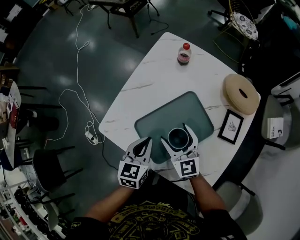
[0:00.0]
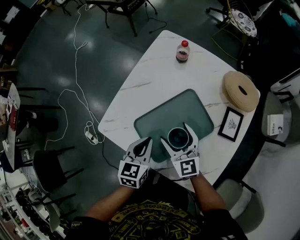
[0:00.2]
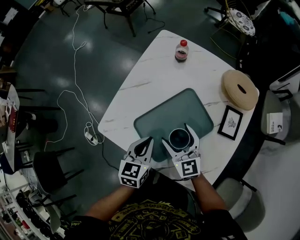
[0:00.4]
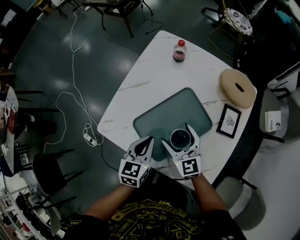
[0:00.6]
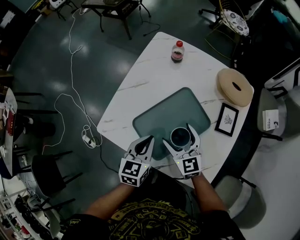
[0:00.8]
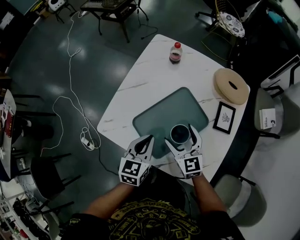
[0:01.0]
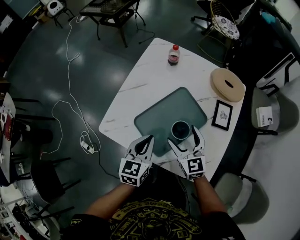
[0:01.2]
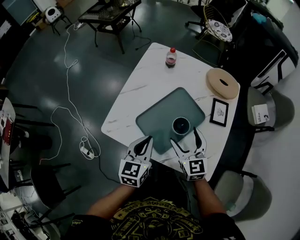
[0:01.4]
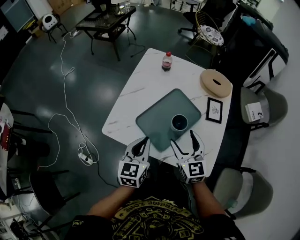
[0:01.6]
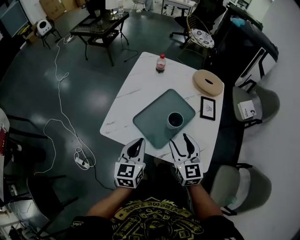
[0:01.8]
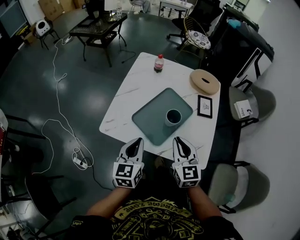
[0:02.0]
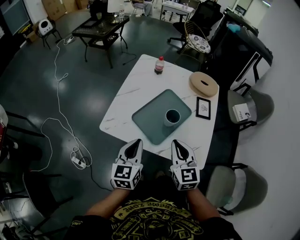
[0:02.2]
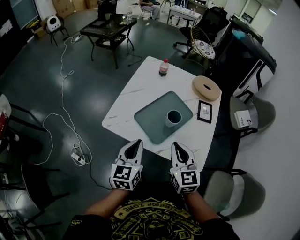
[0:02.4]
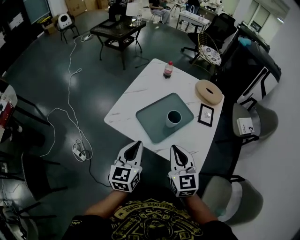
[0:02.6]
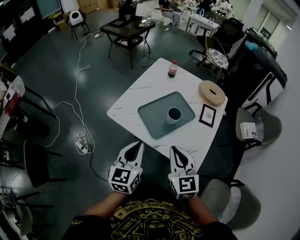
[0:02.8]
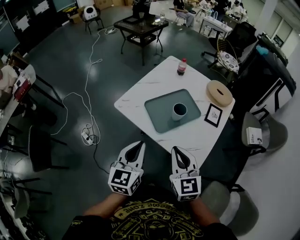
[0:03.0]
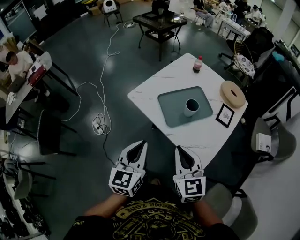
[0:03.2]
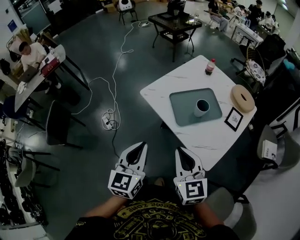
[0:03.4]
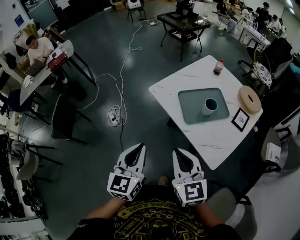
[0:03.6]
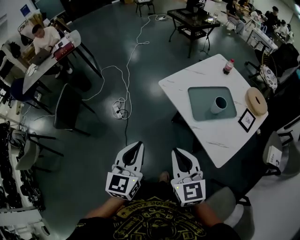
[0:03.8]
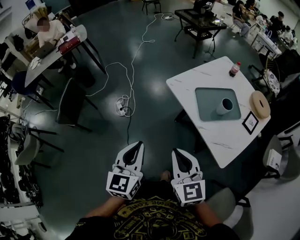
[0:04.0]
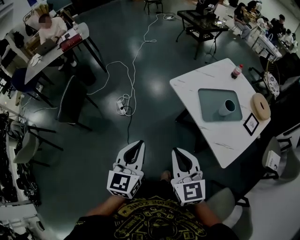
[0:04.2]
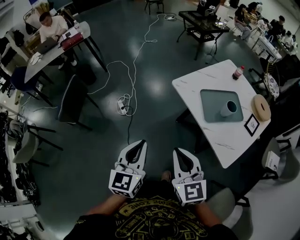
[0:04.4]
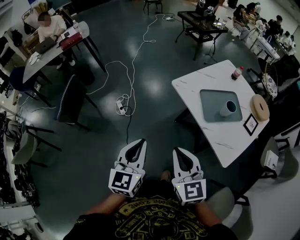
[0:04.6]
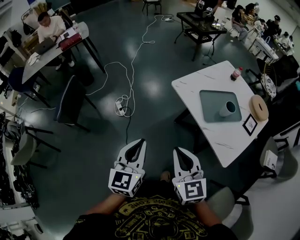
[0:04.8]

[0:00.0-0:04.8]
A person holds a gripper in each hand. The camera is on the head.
0:00.0 to 0:01.6: The two grippers go roughly 10 cm backward and upward. The right gripper changes its angle by about 20 degrees.
0:01.6 to 0:03.2: The right gripper changes place by roughly 25 cm, turns by some 20 degrees, and closes its fingers; the left gripper shifts by approximately 25 cm, and turns by about 20 degrees.
0:03.2 to 0:04.8: Both grippers travel together to the left, some 25 cm.

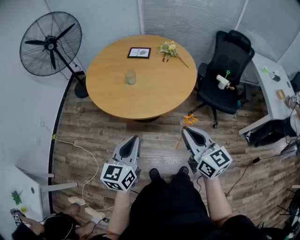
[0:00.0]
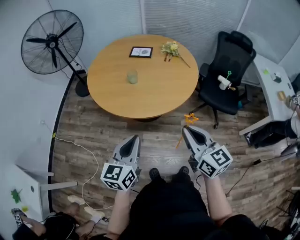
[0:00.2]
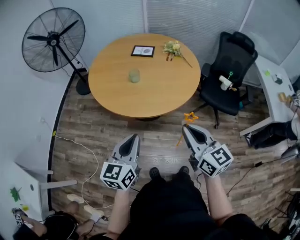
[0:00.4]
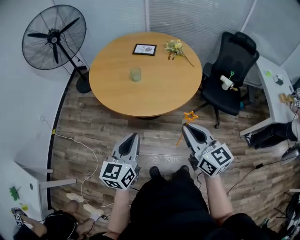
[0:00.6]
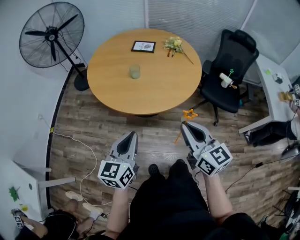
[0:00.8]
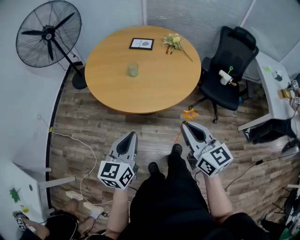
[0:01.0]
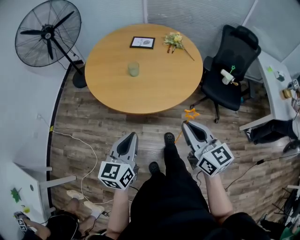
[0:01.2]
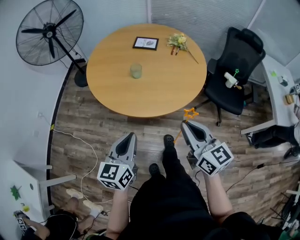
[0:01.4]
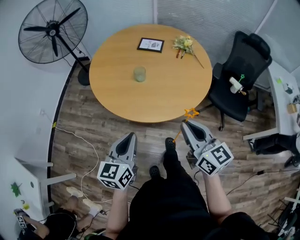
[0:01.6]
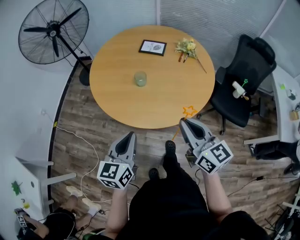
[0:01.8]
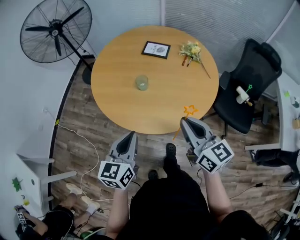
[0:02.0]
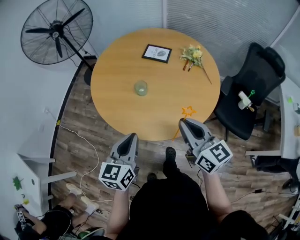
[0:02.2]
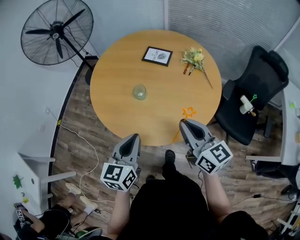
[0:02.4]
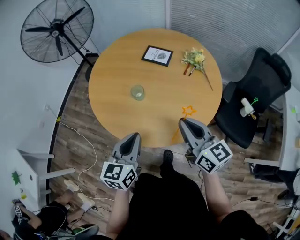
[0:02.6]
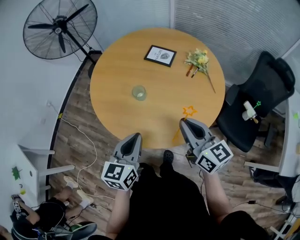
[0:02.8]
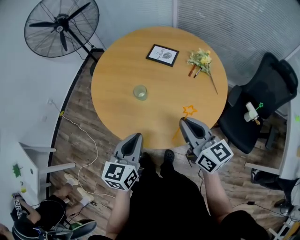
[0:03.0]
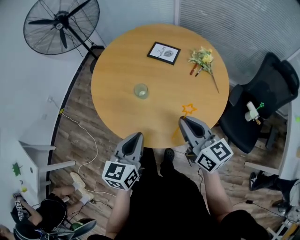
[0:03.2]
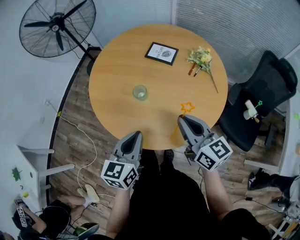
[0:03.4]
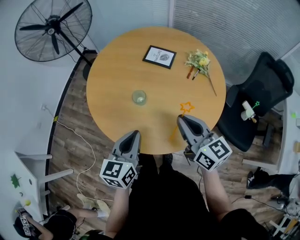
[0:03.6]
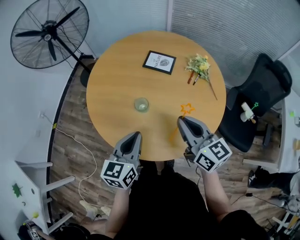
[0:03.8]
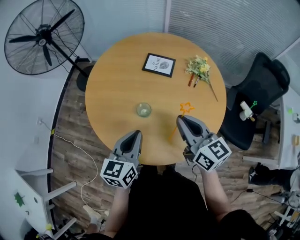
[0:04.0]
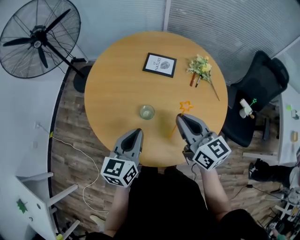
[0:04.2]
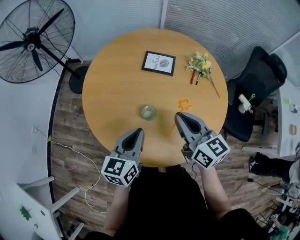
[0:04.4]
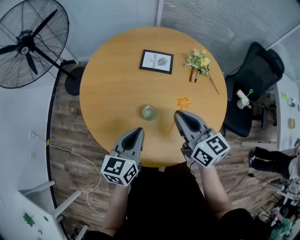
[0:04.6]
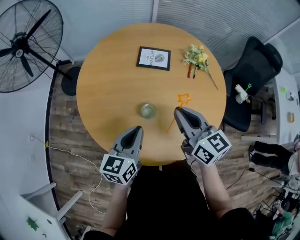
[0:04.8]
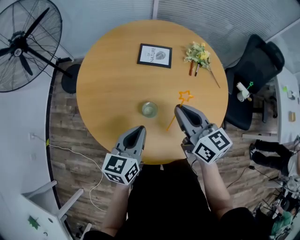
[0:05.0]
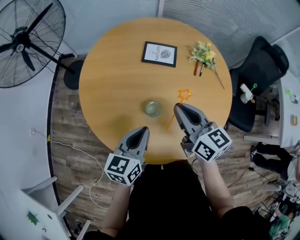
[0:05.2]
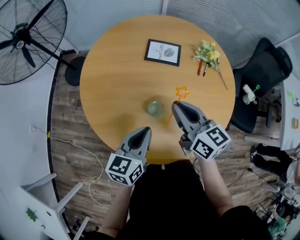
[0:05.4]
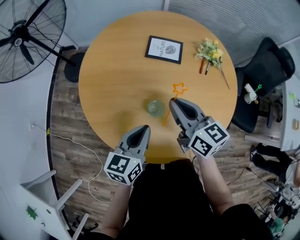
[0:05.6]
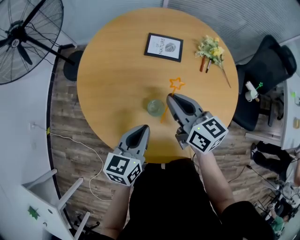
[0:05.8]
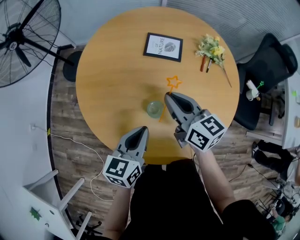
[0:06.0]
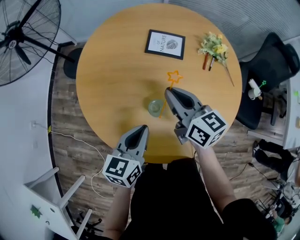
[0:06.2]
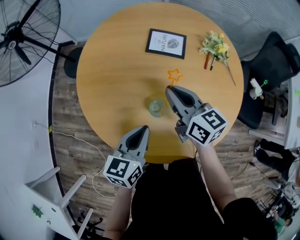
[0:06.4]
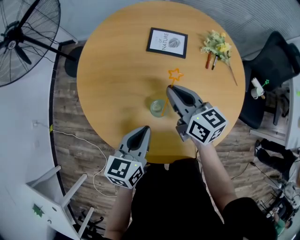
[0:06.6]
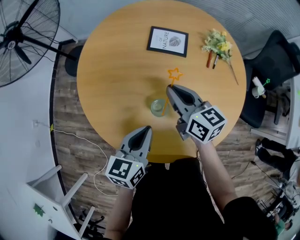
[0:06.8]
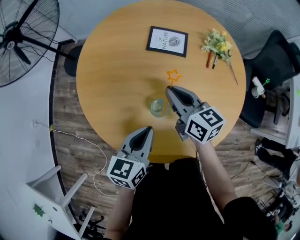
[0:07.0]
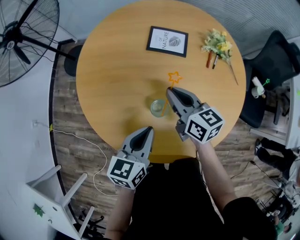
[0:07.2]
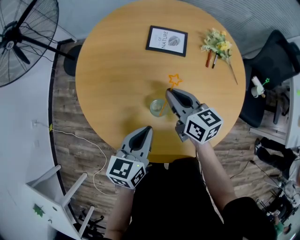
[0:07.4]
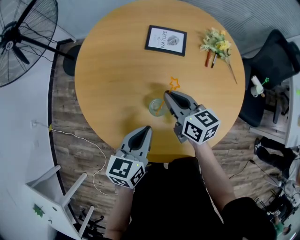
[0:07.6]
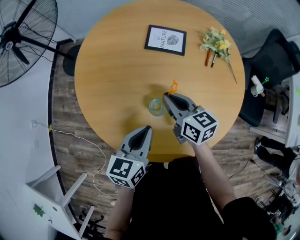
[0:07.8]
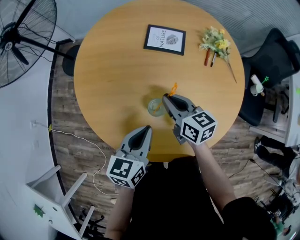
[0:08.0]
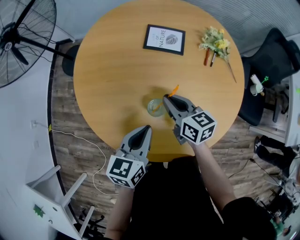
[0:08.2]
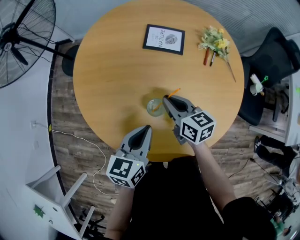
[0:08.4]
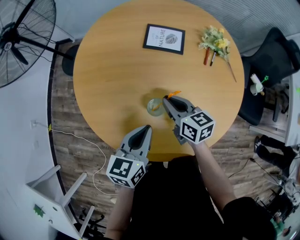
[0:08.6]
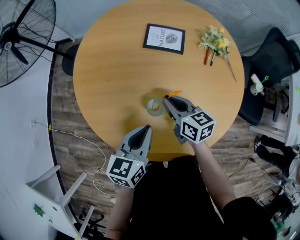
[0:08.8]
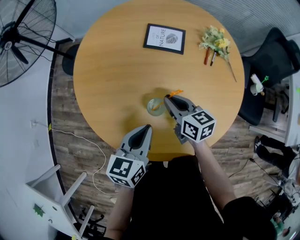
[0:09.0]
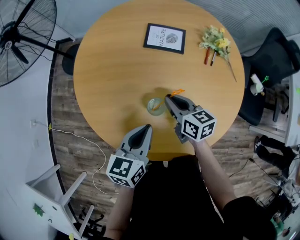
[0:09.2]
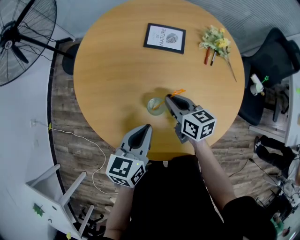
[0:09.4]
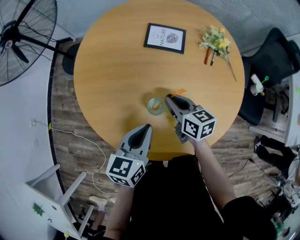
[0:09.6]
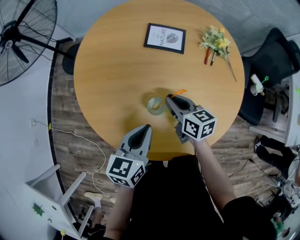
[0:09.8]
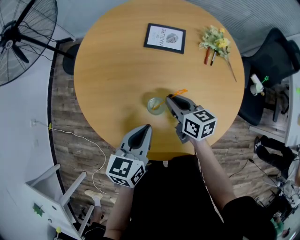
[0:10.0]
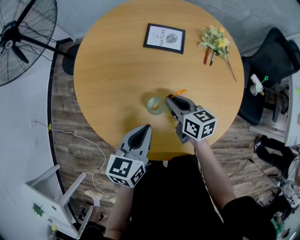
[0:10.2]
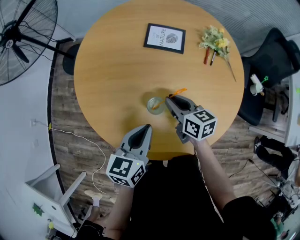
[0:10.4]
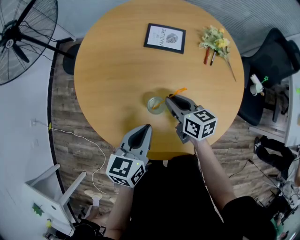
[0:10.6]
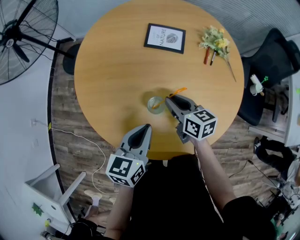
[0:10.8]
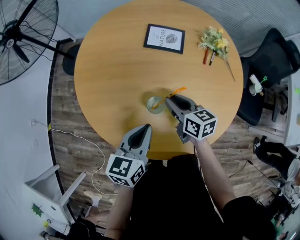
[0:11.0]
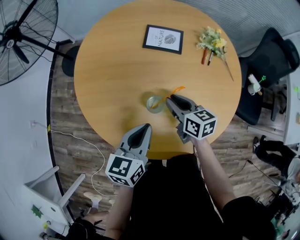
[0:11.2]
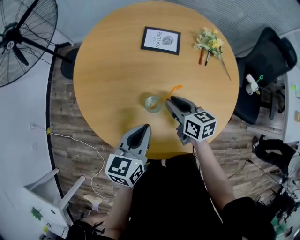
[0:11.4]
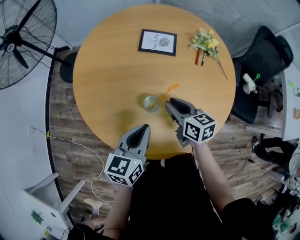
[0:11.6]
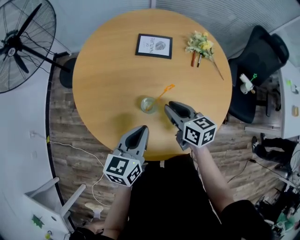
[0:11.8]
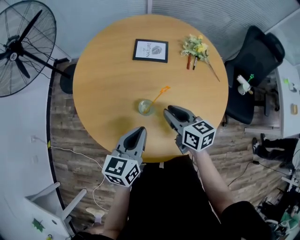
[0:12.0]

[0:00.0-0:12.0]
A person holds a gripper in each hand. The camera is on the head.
0:00.0 to 0:01.6: The grippers both shift forward by some 10 cm.
0:01.6 to 0:03.0: The grippers both shift forward and to the right by approximately 20 cm.
0:03.0 to 0:04.4: Both grippers move forward and to the left, about 20 cm.
0:04.4 to 0:06.0: The right gripper is displaced forward, downward and to the left by some 15 cm; the left gripper shifts roughly 5 cm downward.
0:06.0 to 0:07.6: The right gripper is displaced downward by roughly 5 cm.
0:07.6 to 0:10.4: There are only small adjustments of the grippers.
0:10.4 to 0:12.0: The right gripper shifts some 10 cm backward and upward.

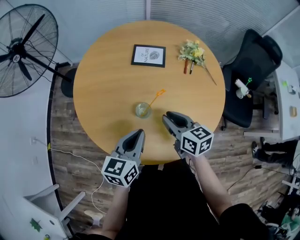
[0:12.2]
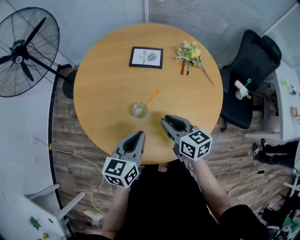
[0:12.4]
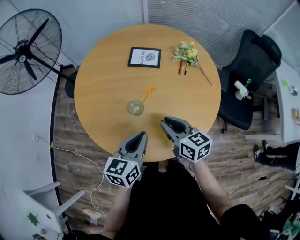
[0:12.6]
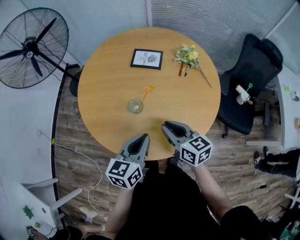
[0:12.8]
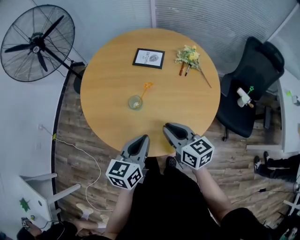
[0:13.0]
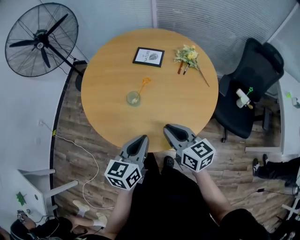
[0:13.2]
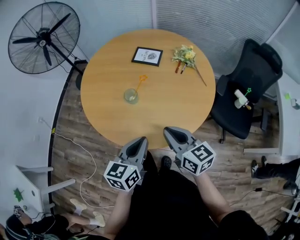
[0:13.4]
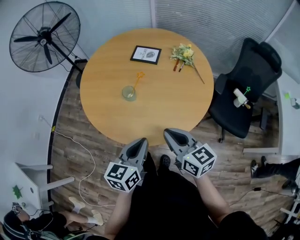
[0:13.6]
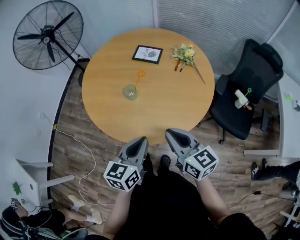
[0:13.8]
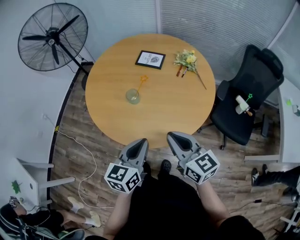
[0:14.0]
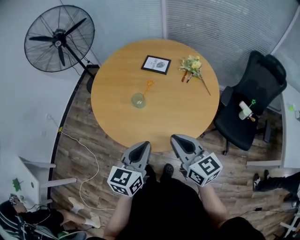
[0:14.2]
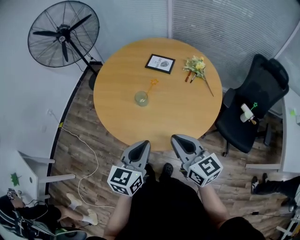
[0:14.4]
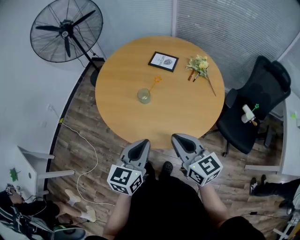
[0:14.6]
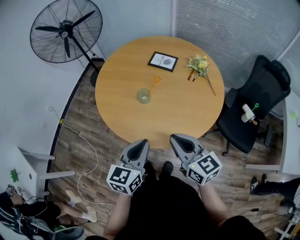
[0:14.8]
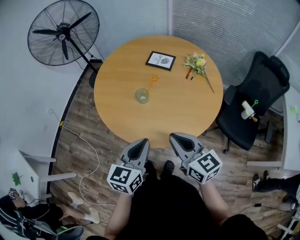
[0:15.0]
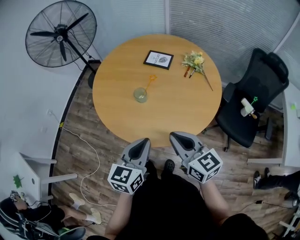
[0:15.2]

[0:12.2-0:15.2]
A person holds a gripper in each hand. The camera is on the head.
0:12.2 to 0:13.8: The right gripper goes approximately 25 cm backward, to the right and upward, and turns by roughly 20 degrees. The left gripper moves backward and to the right, roughly 25 cm.
0:13.8 to 0:15.2: The grippers stay close to where they were, moving slightly.

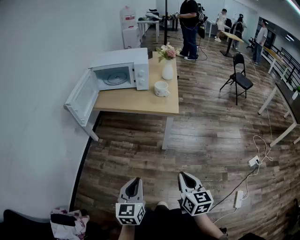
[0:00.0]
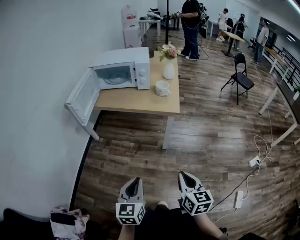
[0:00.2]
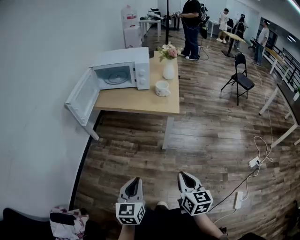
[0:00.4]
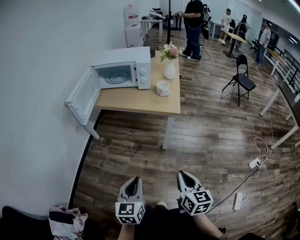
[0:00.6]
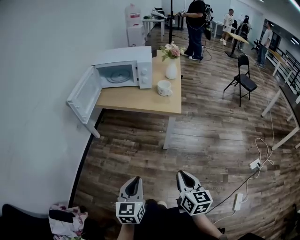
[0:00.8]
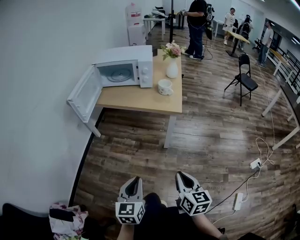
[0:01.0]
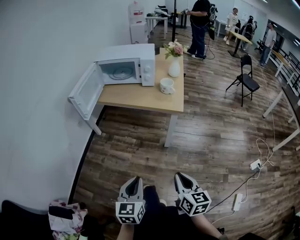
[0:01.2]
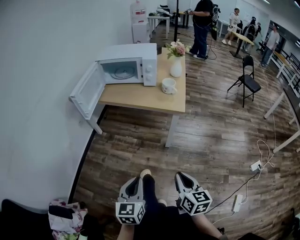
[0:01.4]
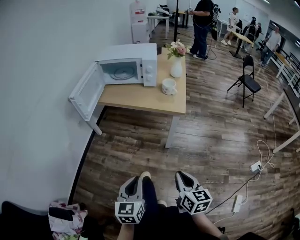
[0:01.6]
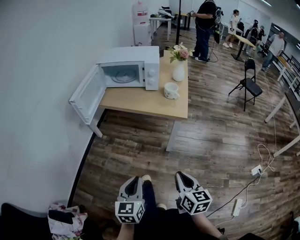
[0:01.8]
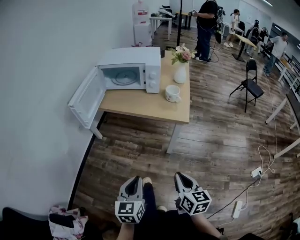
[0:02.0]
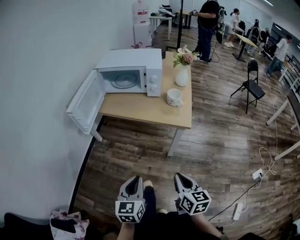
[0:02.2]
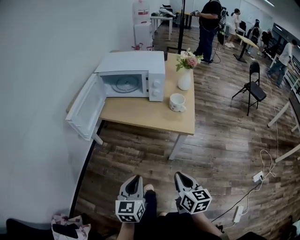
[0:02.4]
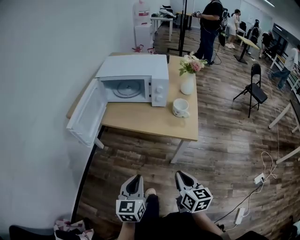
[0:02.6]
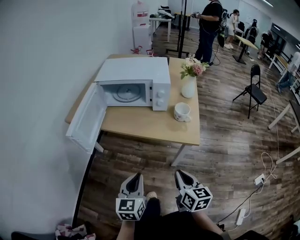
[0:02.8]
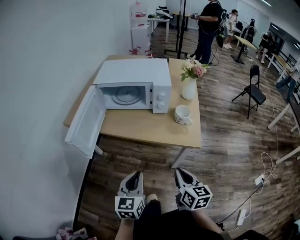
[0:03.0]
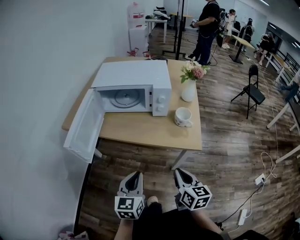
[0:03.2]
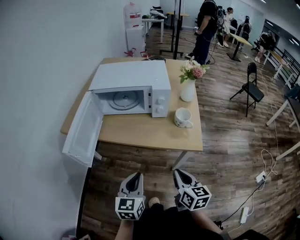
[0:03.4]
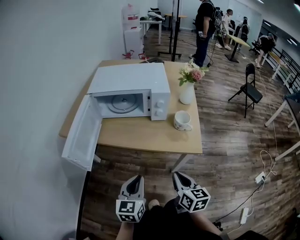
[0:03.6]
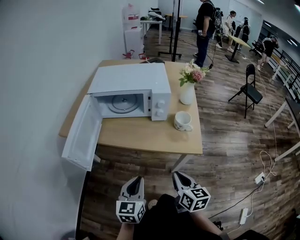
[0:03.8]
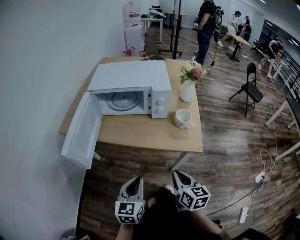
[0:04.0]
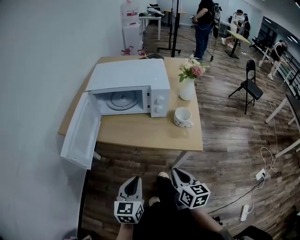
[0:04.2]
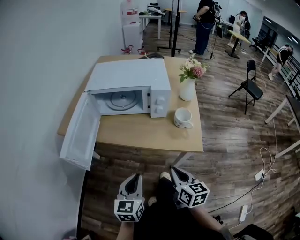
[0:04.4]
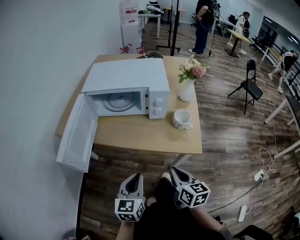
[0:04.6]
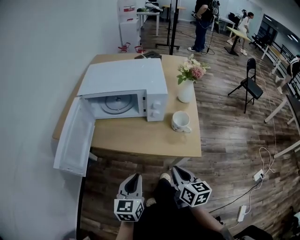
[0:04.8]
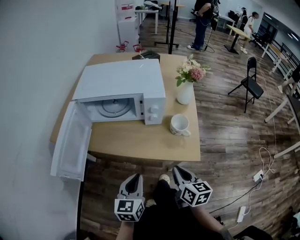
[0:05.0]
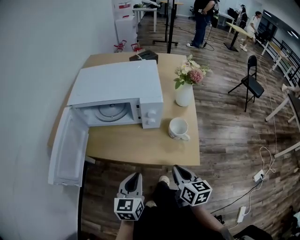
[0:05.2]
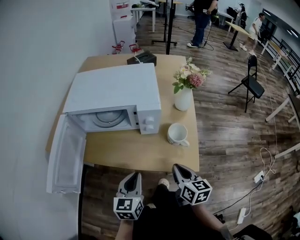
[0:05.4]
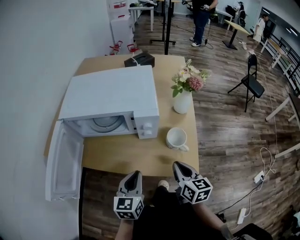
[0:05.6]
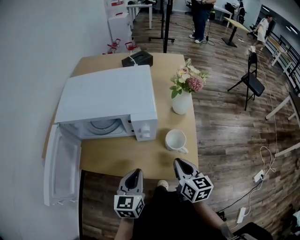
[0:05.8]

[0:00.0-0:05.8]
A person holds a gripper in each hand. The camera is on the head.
0:00.0 to 0:01.4: The grippers move only a little.
0:01.4 to 0:02.8: The two grippers go about 25 cm forward.
0:02.8 to 0:04.4: The two grippers go some 10 cm forward.
0:04.4 to 0:05.8: The two grippers go some 25 cm forward and to the right.
